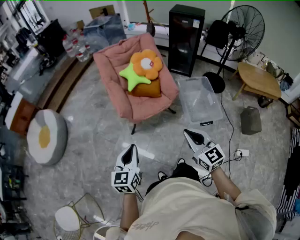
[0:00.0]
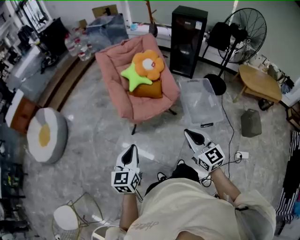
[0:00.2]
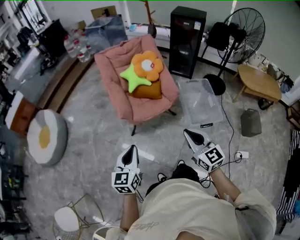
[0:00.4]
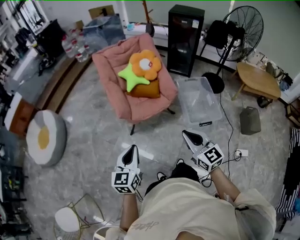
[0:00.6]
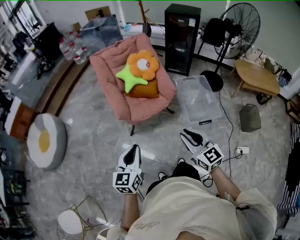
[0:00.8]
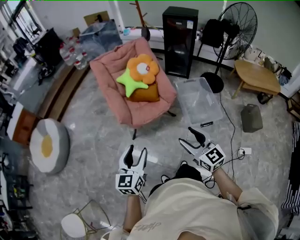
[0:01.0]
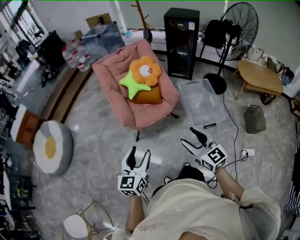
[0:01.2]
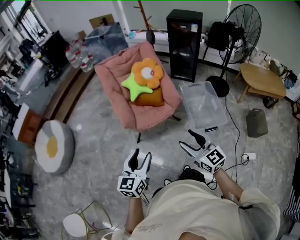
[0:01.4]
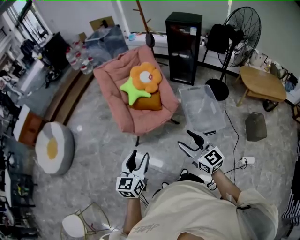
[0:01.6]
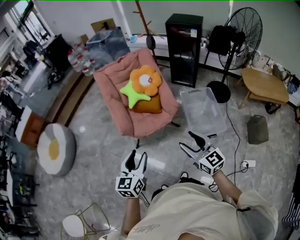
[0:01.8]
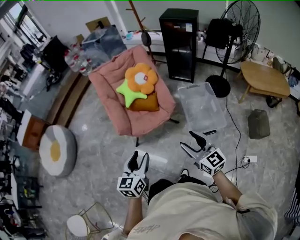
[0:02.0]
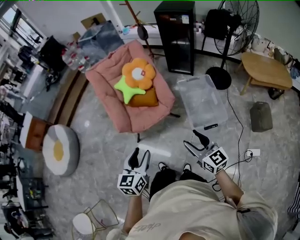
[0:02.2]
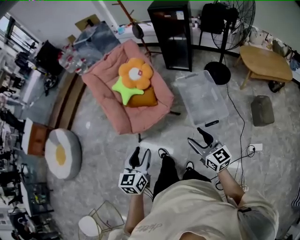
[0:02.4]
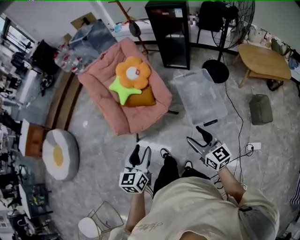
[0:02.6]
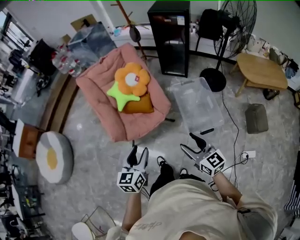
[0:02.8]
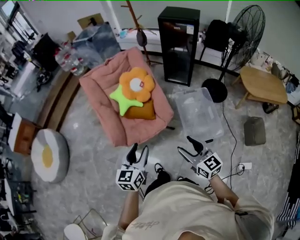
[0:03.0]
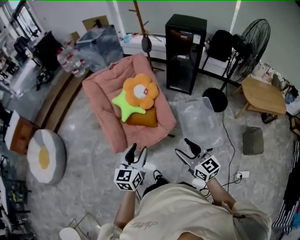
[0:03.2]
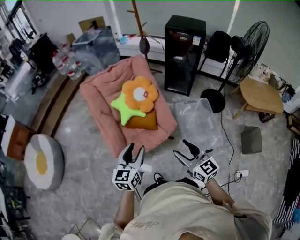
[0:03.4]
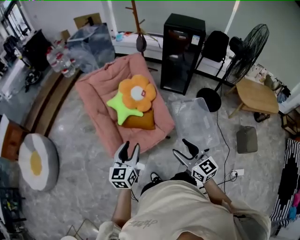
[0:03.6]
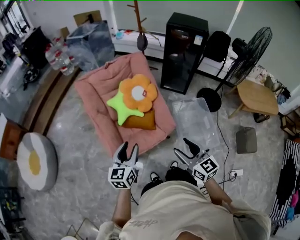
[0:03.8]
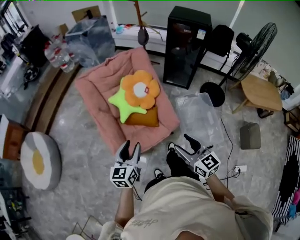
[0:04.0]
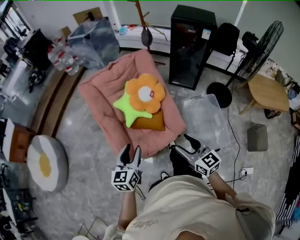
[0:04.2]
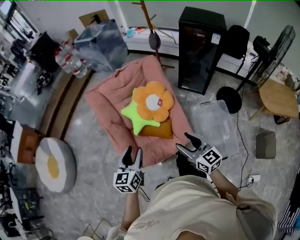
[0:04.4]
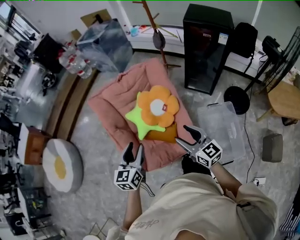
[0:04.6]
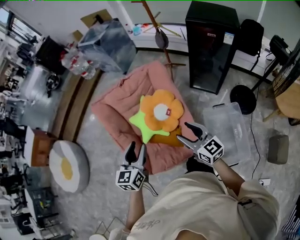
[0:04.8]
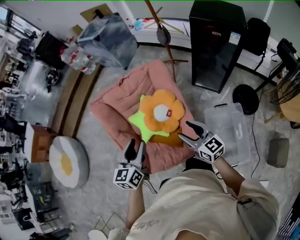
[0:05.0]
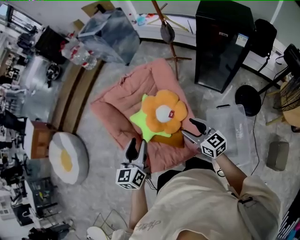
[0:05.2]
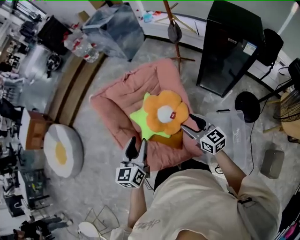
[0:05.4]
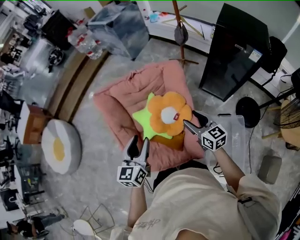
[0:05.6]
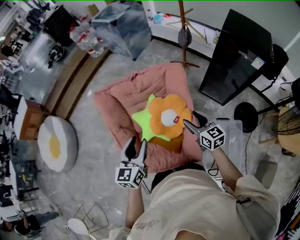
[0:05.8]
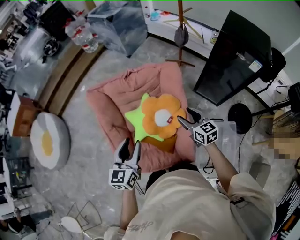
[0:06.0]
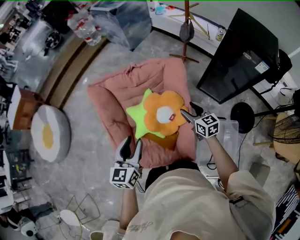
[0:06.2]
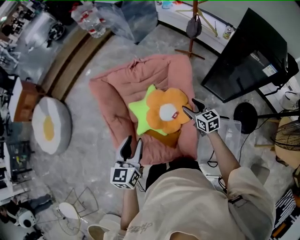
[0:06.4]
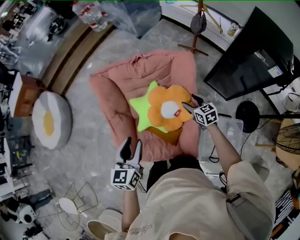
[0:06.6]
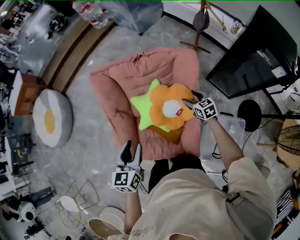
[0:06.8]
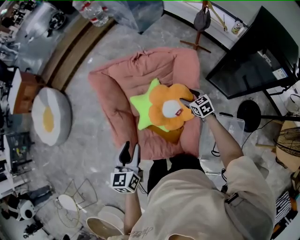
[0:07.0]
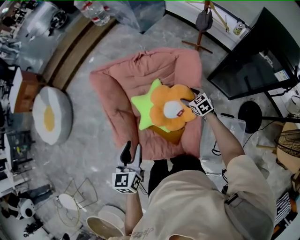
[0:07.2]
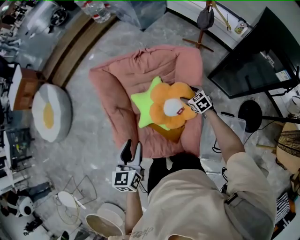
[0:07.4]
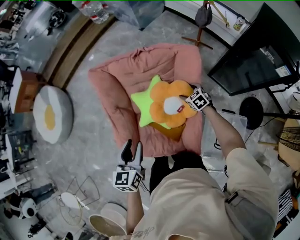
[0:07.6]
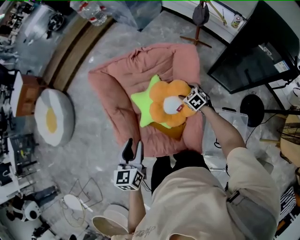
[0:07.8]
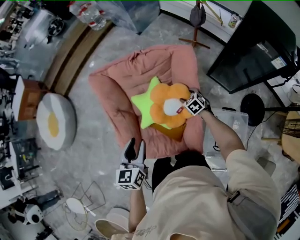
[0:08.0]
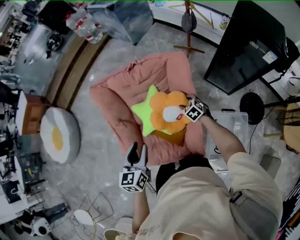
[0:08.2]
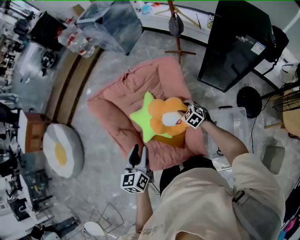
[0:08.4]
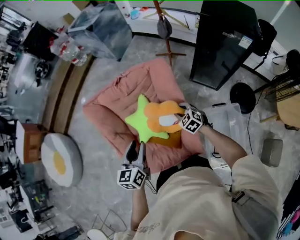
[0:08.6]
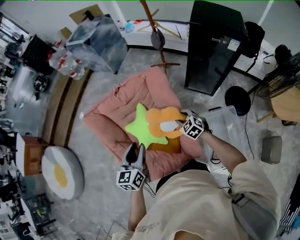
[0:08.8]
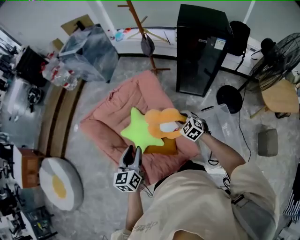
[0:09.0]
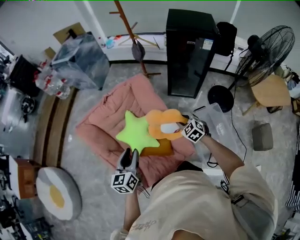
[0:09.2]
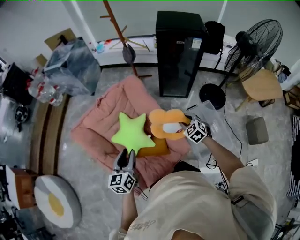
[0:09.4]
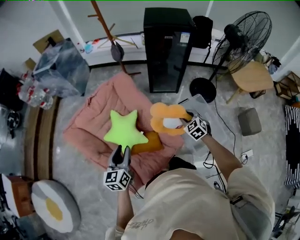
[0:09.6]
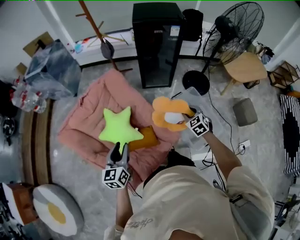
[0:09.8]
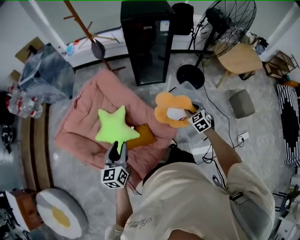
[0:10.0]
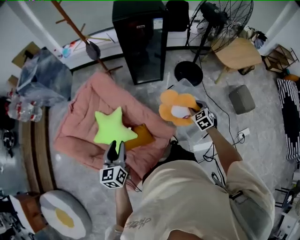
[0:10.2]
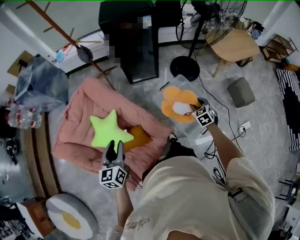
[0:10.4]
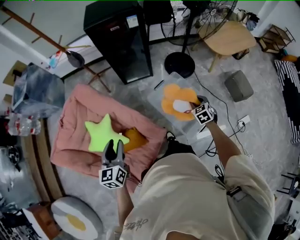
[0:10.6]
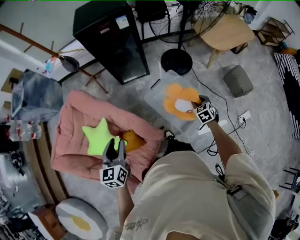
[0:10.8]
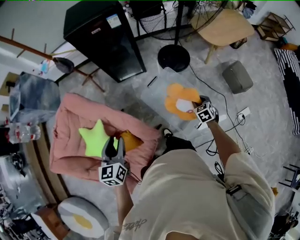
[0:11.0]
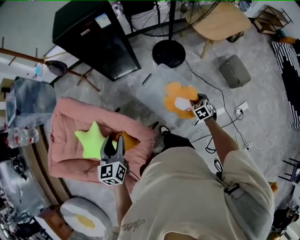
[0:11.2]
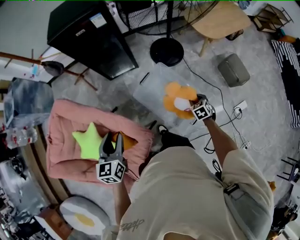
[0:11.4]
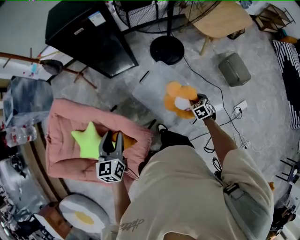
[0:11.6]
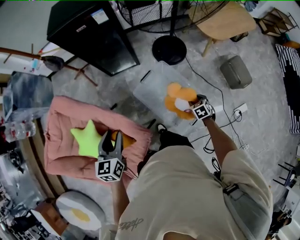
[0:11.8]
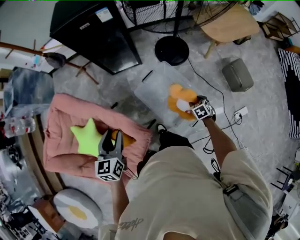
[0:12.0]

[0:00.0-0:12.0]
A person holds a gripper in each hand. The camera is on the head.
0:00.0 to 0:01.6: The left gripper heads to the right, covering roughly 5 cm, and opens up; the right gripper changes place by approximately 5 cm, and opens up.
0:01.6 to 0:03.0: The two grippers go about 15 cm forward and to the right.
0:03.0 to 0:04.4: The left gripper moves forward and to the left, about 25 cm. Meanwhile the right gripper is displaced forward by about 25 cm.
0:04.4 to 0:06.0: The left gripper is displaced forward by approximately 15 cm; the right gripper moves forward, some 30 cm.
0:06.0 to 0:07.6: The right gripper travels downward and forward by roughly 25 cm, and tips its fingers downward by roughly 30 degrees. Meanwhile the left gripper changes place by approximately 5 cm.
0:07.6 to 0:09.0: The left gripper rotates about 30 degrees, while the right gripper changes place by approximately 20 cm, changes its angle by about 20 degrees, and closes.
0:09.0 to 0:10.4: The left gripper ends up some 10 cm from where it was, and turns by approximately 20 degrees, while the right gripper shifts by about 35 cm, and swivels some 50 degrees.
0:10.4 to 0:12.0: The left gripper goes approximately 20 cm to the right and forward; the right gripper shifts roughly 20 cm to the right and downward, and turns by about 20 degrees.

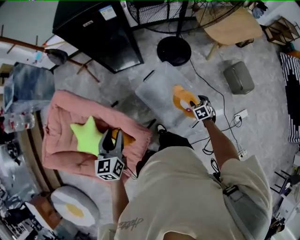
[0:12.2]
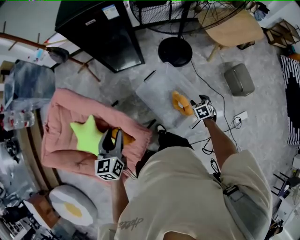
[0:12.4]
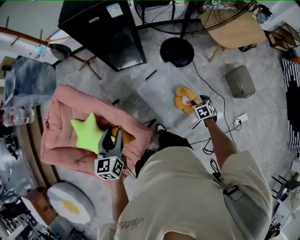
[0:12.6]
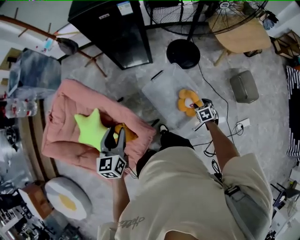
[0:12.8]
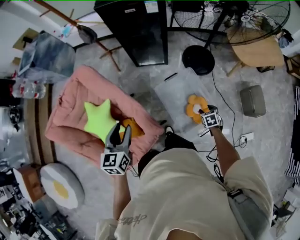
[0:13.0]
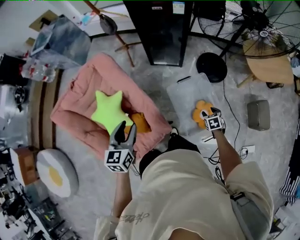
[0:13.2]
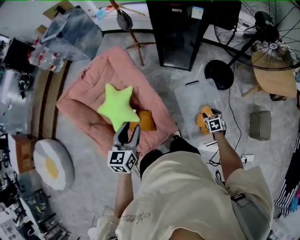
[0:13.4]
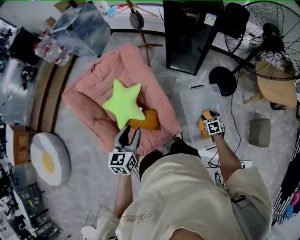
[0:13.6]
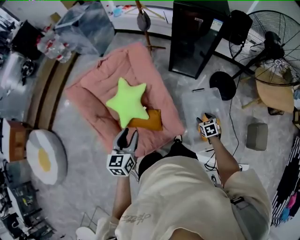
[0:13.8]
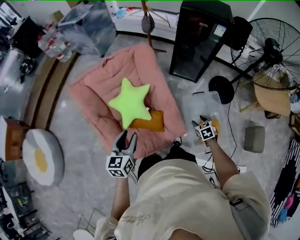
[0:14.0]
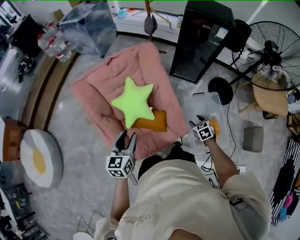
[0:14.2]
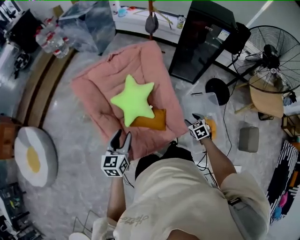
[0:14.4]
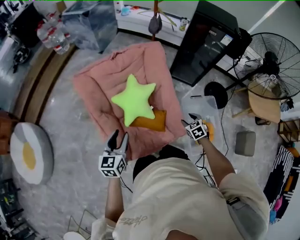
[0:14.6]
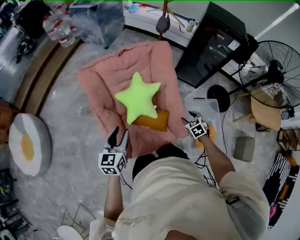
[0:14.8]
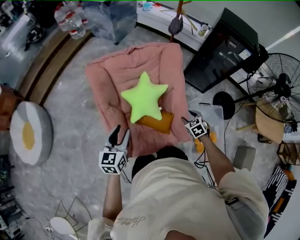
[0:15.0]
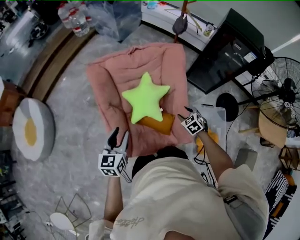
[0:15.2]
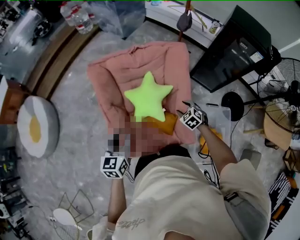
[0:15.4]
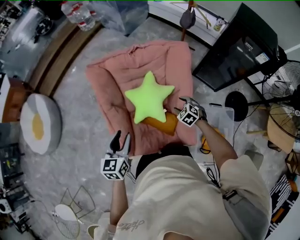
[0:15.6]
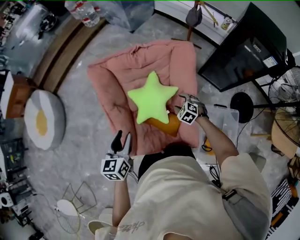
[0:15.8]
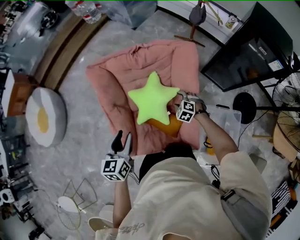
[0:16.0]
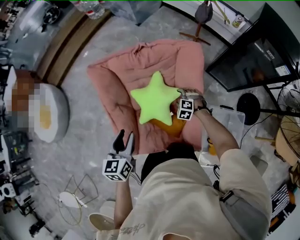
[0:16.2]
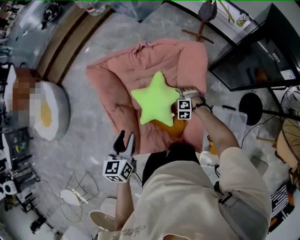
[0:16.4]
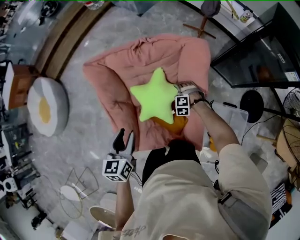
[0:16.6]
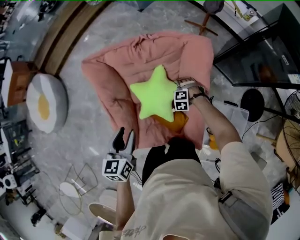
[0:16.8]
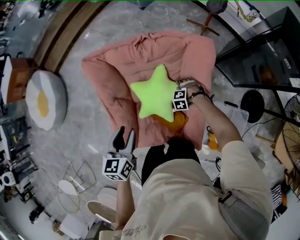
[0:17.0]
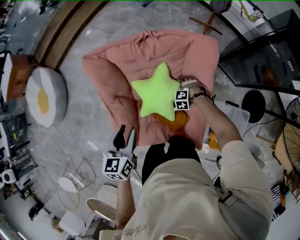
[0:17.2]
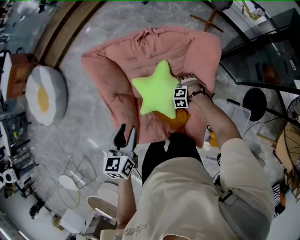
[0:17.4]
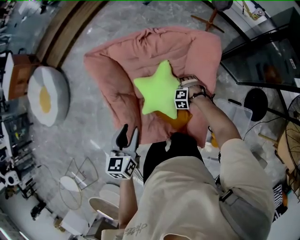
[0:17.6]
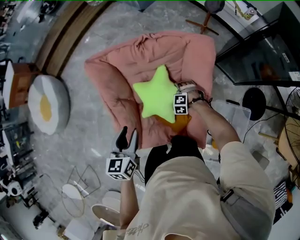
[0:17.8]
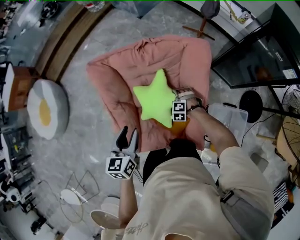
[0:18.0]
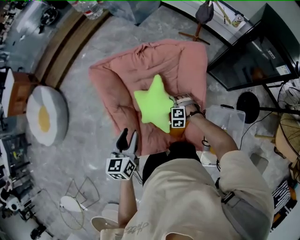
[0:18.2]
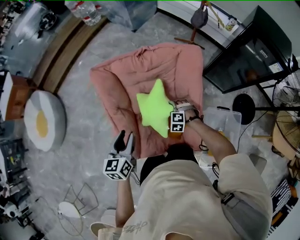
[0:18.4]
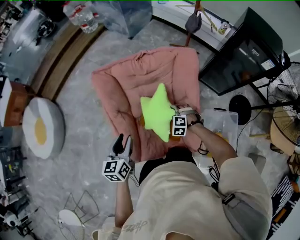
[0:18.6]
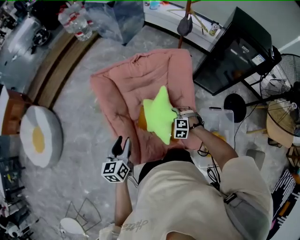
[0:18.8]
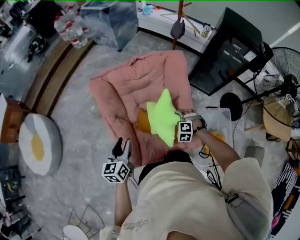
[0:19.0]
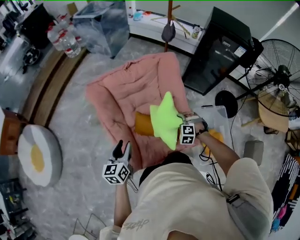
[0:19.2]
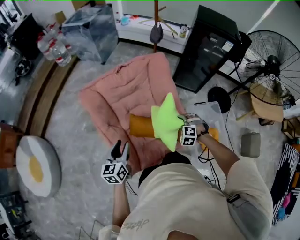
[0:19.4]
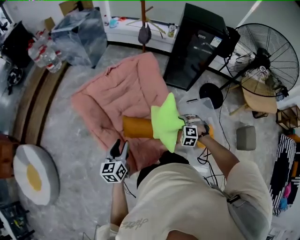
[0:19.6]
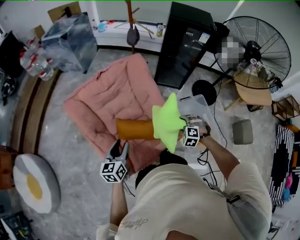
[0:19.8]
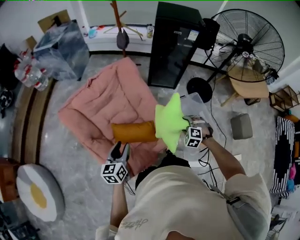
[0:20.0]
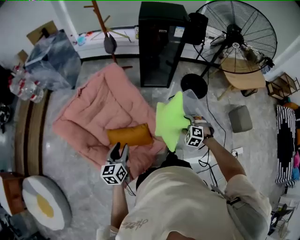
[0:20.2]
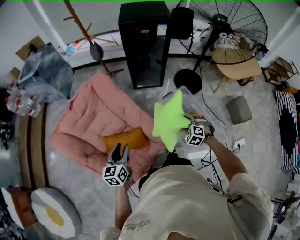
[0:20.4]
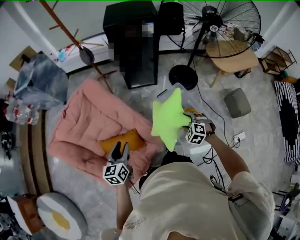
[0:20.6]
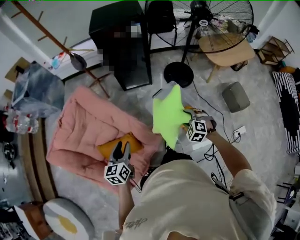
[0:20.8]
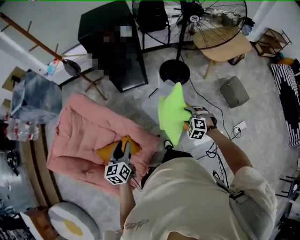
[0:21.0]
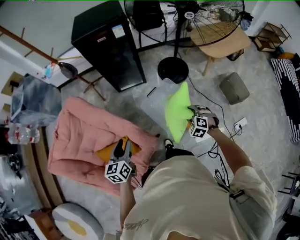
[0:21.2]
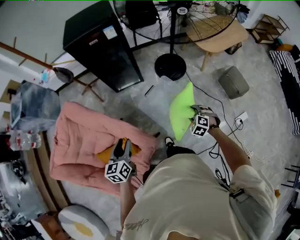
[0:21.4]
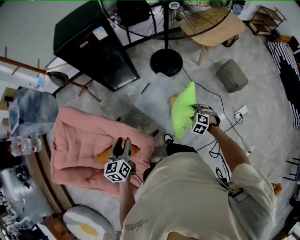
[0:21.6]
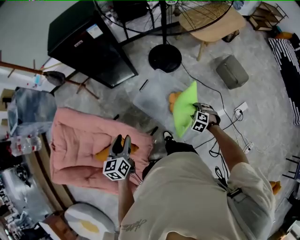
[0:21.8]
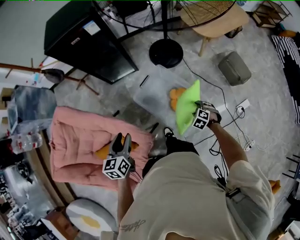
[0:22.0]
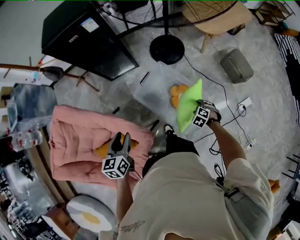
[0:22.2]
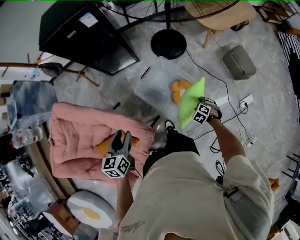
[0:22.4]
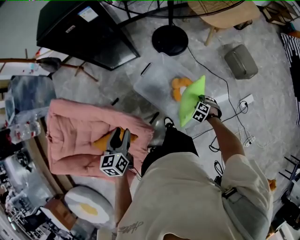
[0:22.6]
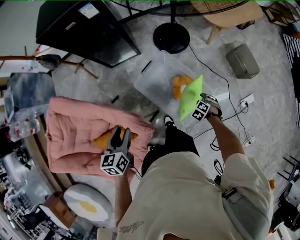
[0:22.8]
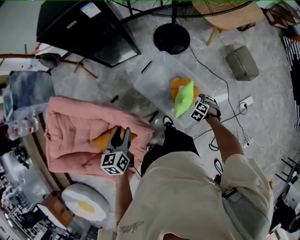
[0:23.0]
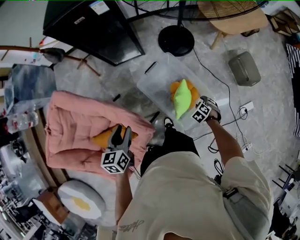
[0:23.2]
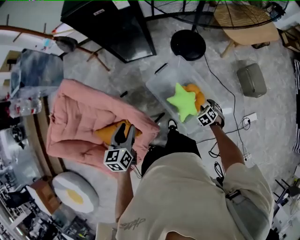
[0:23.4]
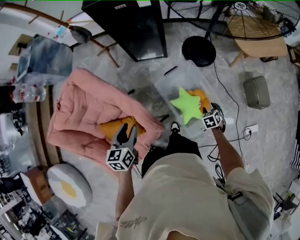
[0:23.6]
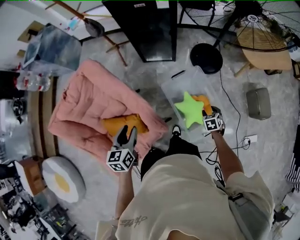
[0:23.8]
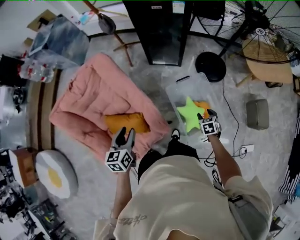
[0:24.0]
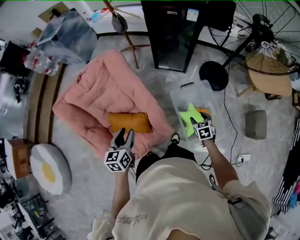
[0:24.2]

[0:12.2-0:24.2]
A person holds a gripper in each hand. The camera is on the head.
0:12.2 to 0:13.8: The right gripper moves about 25 cm, and swivels about 30 degrees, while the left gripper shifts by about 25 cm, and turns by roughly 30 degrees.
0:13.8 to 0:15.2: The left gripper is displaced to the left by about 15 cm, while the right gripper moves to the left, about 25 cm, and turns by roughly 40 degrees.
0:15.2 to 0:16.6: The left gripper moves forward, some 5 cm; the right gripper shifts about 20 cm forward and downward, and rolls counterclockwise, seen from behind, by some 60 degrees.
0:16.6 to 0:18.2: The right gripper shifts by roughly 10 cm.
0:18.2 to 0:19.8: The left gripper ends up approximately 5 cm from where it was, and rotates about 30 degrees. The right gripper shifts by about 30 cm, and rotates about 40 degrees.
0:19.8 to 0:21.2: The left gripper heads to the right and forward, covering roughly 30 cm, and turns by about 20 degrees. The right gripper moves to the right, approximately 30 cm, and changes its angle by roughly 30 degrees.
0:21.2 to 0:22.6: The left gripper moves roughly 10 cm. The right gripper travels downward by some 20 cm, and turns by some 30 degrees.
0:22.6 to 0:24.2: The right gripper ends up roughly 25 cm from where it was, and turns by about 30 degrees; the left gripper shifts by some 20 cm, and changes its angle by roughly 30 degrees.
